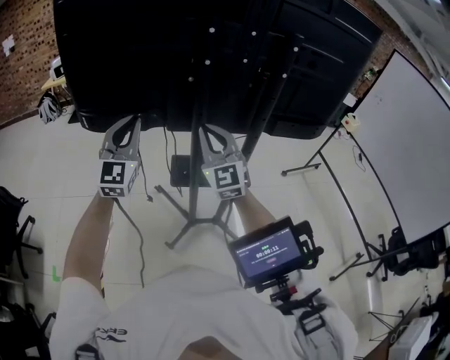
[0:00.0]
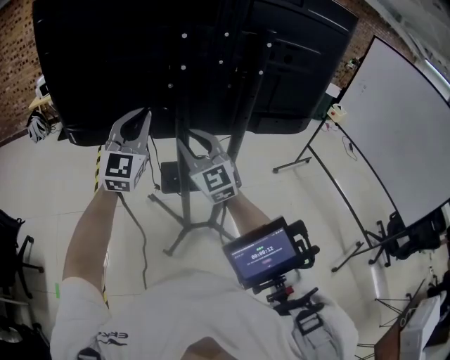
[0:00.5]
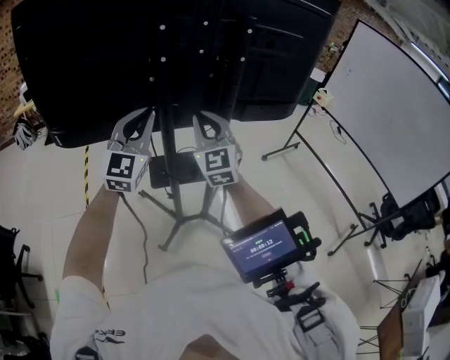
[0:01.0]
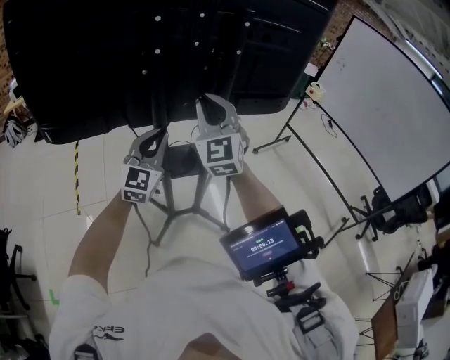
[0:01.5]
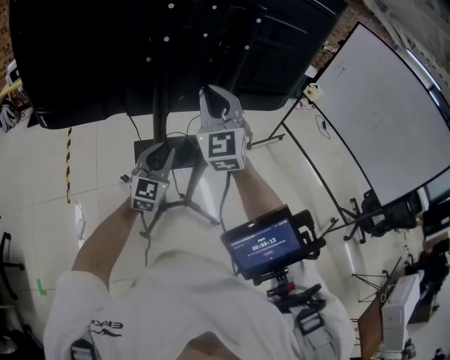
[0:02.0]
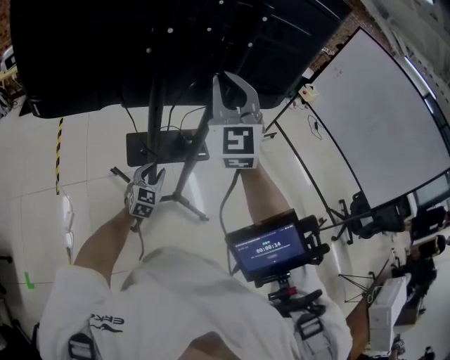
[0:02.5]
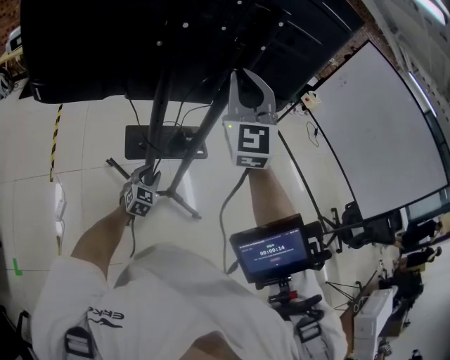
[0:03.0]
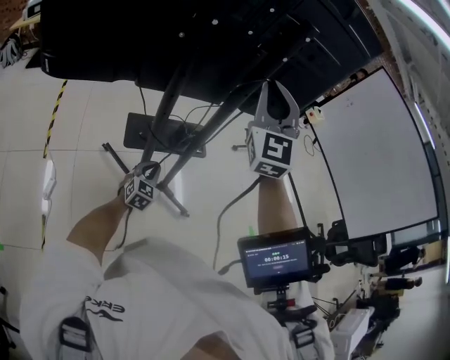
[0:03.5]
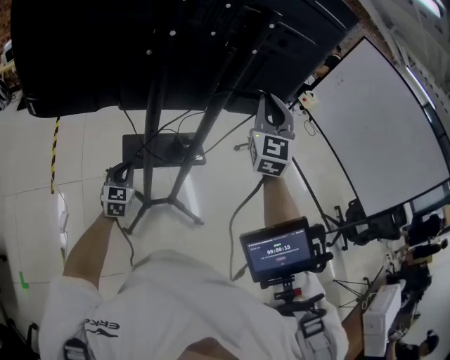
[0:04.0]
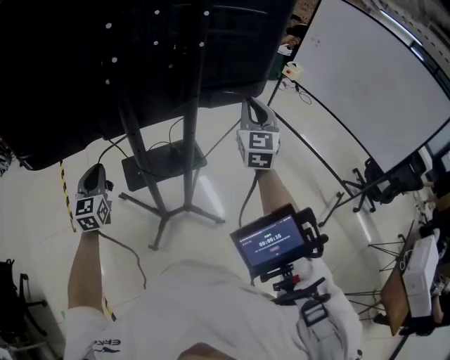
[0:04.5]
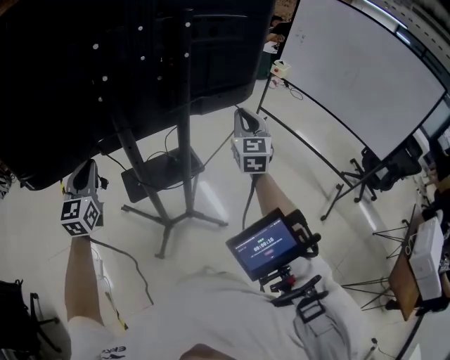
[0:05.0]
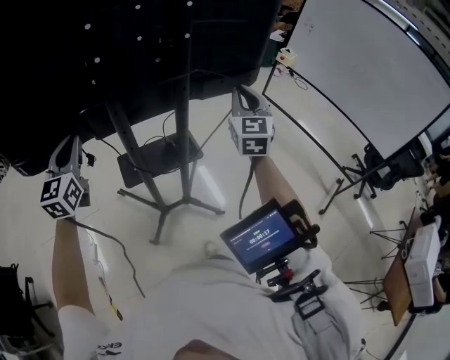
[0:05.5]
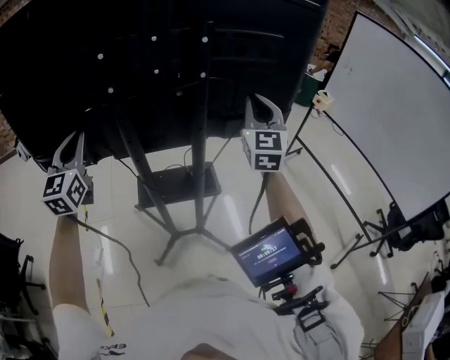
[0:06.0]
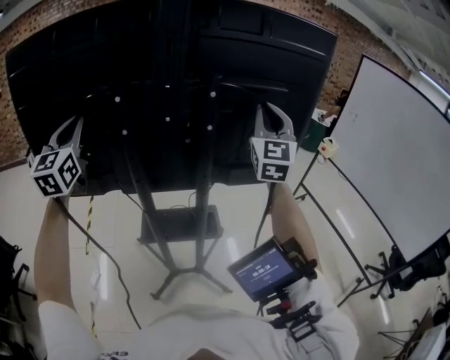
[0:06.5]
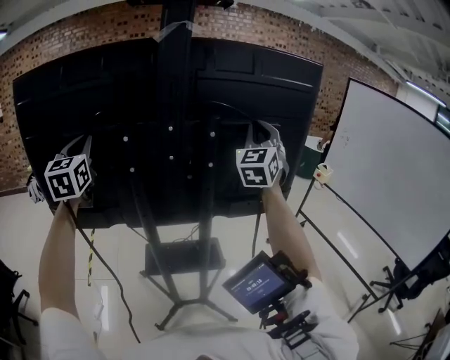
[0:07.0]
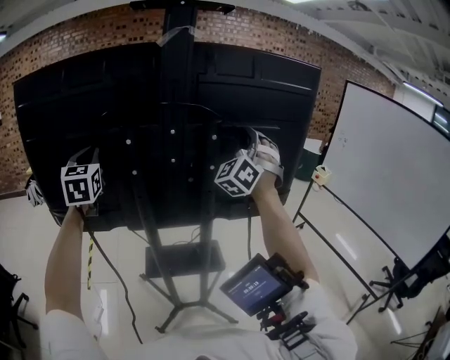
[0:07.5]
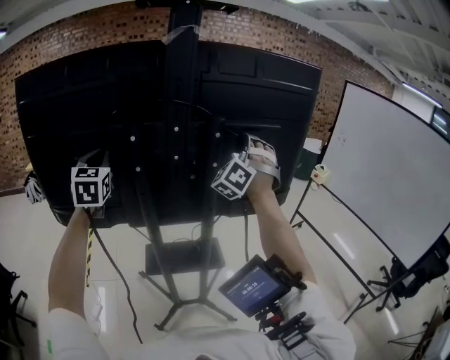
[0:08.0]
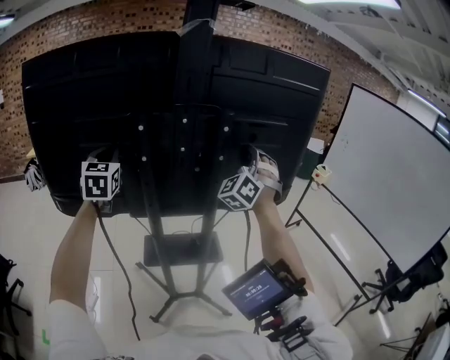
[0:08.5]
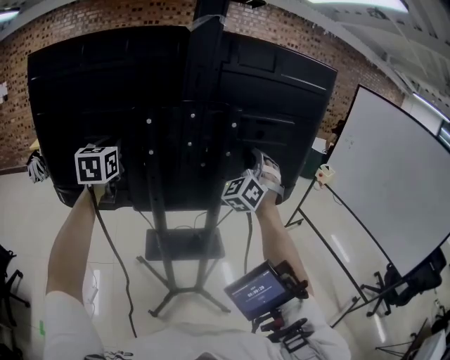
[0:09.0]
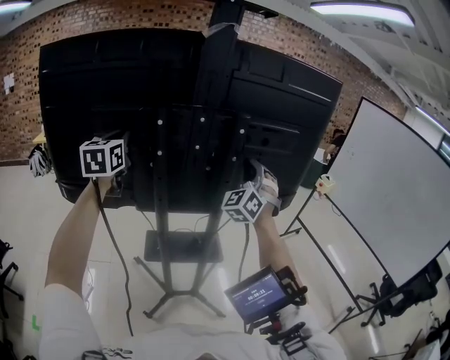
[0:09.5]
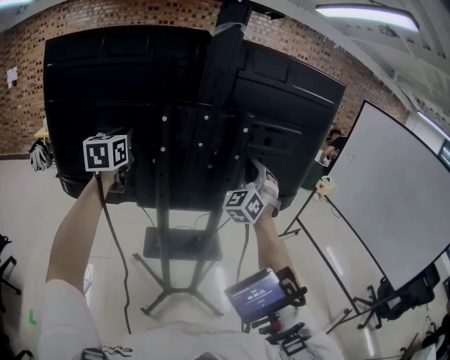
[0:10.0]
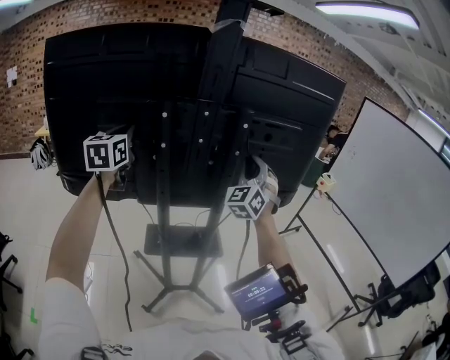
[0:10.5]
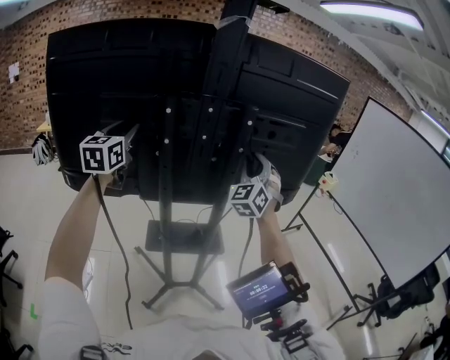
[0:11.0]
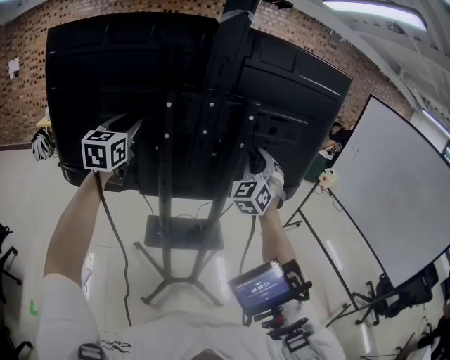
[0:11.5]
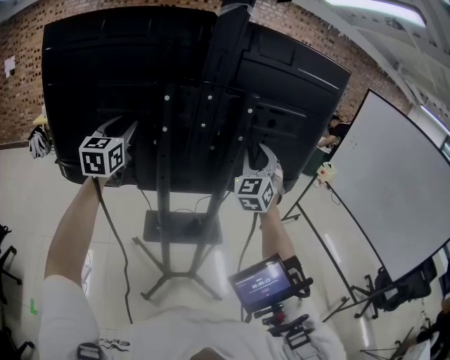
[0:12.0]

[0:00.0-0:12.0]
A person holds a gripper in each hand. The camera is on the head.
0:00.0 to 0:02.0: The left gripper travels to the right and downward by approximately 25 cm, and rotates about 30 degrees. The right gripper goes about 10 cm to the right and upward, and turns by approximately 20 degrees.
0:02.0 to 0:04.0: The right gripper heads to the right, covering some 15 cm; the left gripper moves downward and to the left, roughly 20 cm, and turns by some 30 degrees.
0:04.0 to 0:06.0: The right gripper moves forward and to the right, approximately 15 cm. Meanwhile the left gripper travels upward by roughly 35 cm, and rotates some 20 degrees.
0:06.0 to 0:08.0: The right gripper shifts some 15 cm upward, forward and to the left, and rotates around the line of its fingers by some 60 degrees, counterclockwise from behind. Meanwhile the left gripper moves upward and forward, roughly 15 cm.
0:08.0 to 0:10.0: The right gripper goes roughly 5 cm downward, and turns by approximately 20 degrees. Meanwhile the left gripper turns by about 20 degrees.
0:10.0 to 0:12.0: The right gripper opens; the left gripper opens.

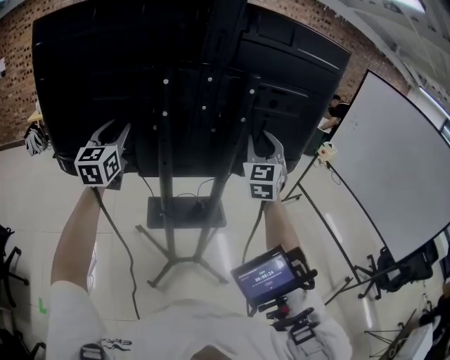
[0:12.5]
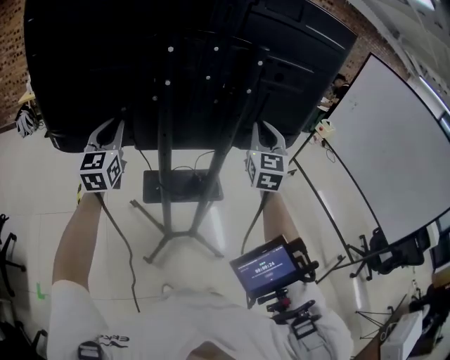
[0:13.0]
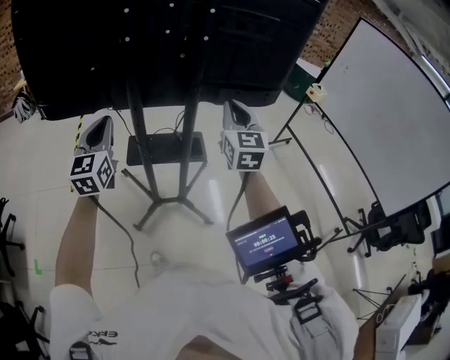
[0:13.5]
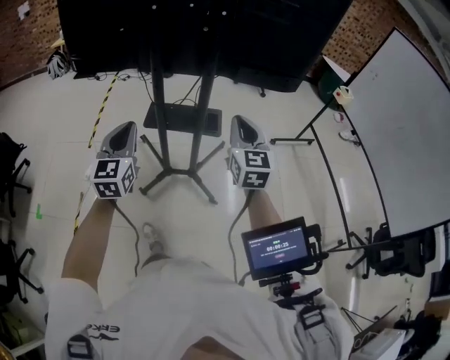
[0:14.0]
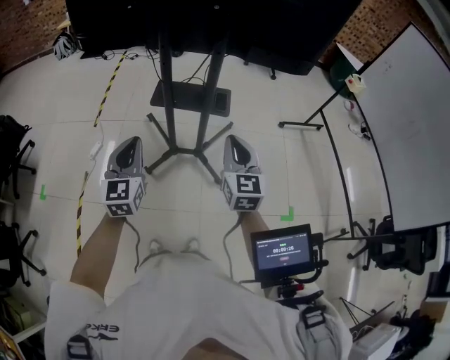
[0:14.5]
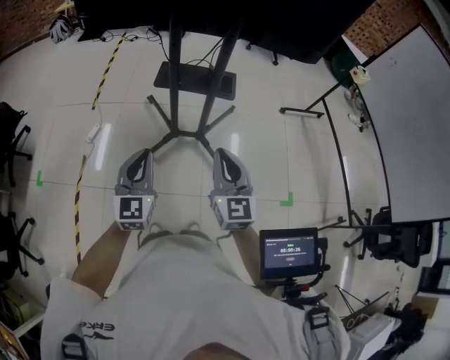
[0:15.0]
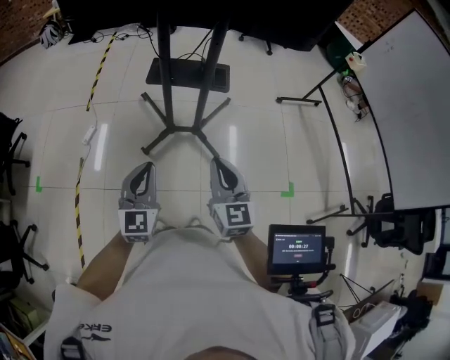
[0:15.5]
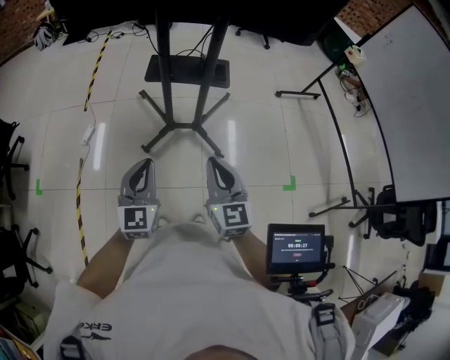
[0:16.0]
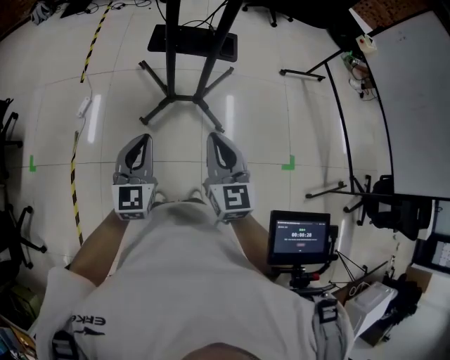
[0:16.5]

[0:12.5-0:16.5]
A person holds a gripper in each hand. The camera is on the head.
0:12.5 to 0:14.5: Both grippers travel together backward and downward, about 40 cm. The right gripper swivels about 40 degrees, and closes, while the left gripper turns by about 20 degrees, and closes.
0:14.5 to 0:16.5: The left gripper heads downward and backward, covering some 10 cm. The right gripper travels to the left, backward and downward by about 15 cm.

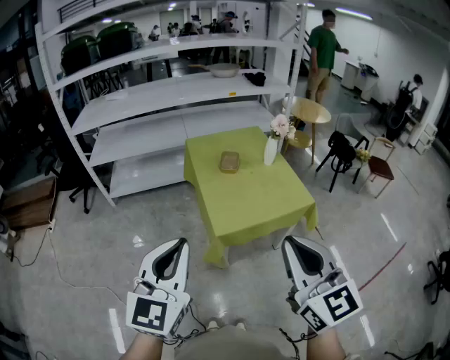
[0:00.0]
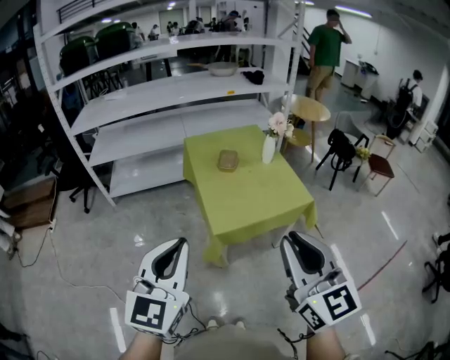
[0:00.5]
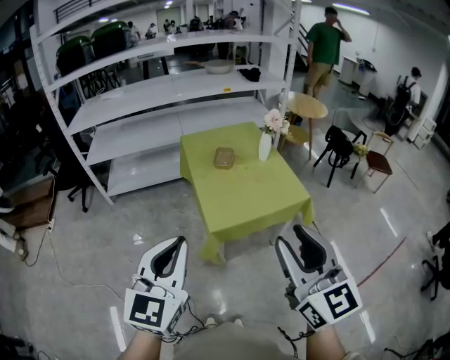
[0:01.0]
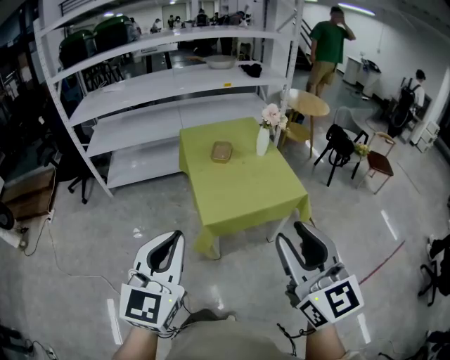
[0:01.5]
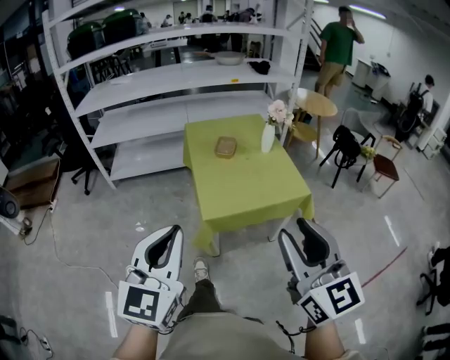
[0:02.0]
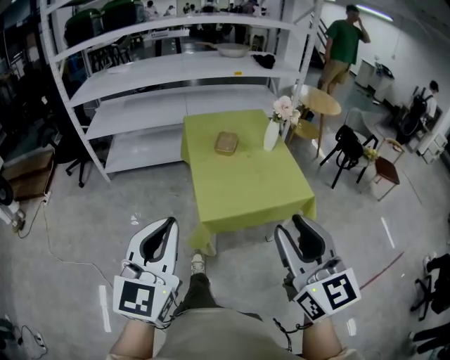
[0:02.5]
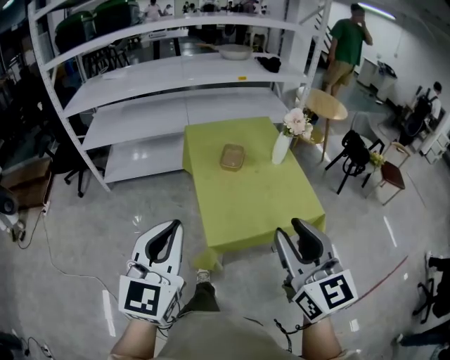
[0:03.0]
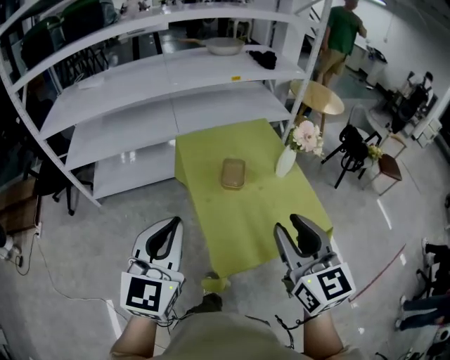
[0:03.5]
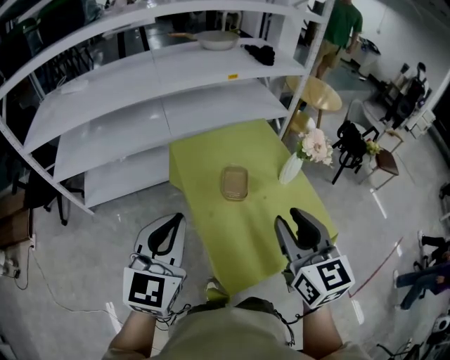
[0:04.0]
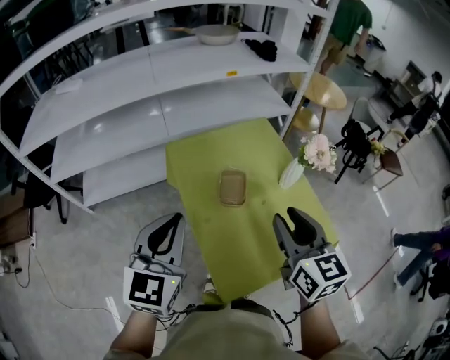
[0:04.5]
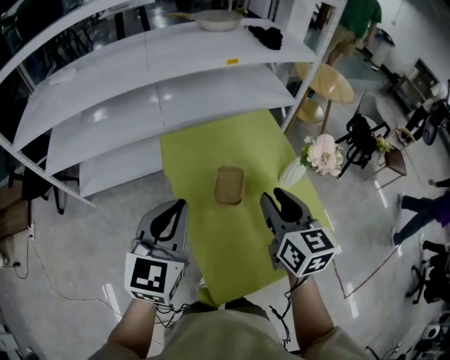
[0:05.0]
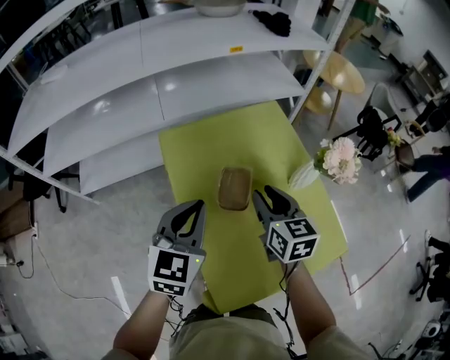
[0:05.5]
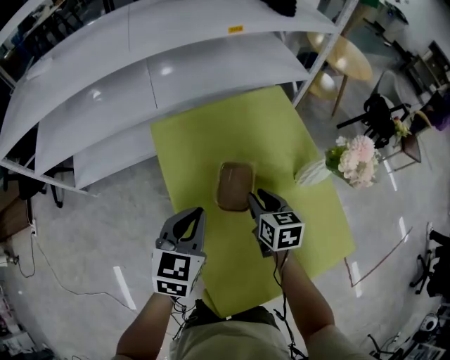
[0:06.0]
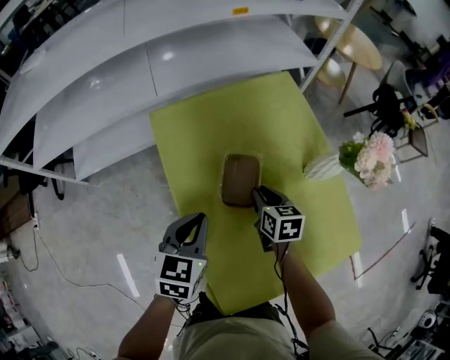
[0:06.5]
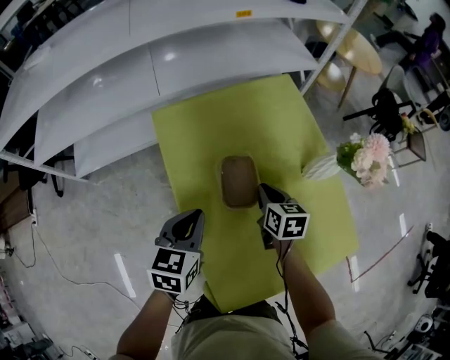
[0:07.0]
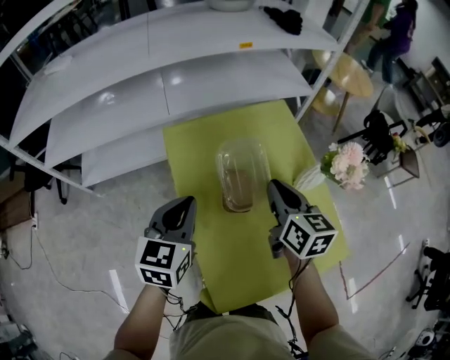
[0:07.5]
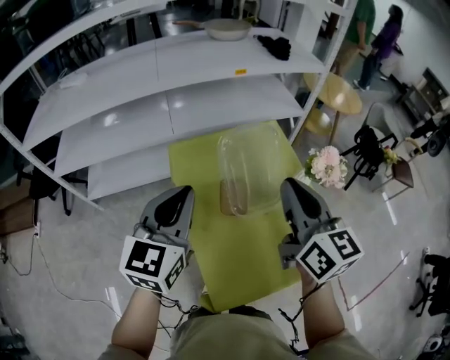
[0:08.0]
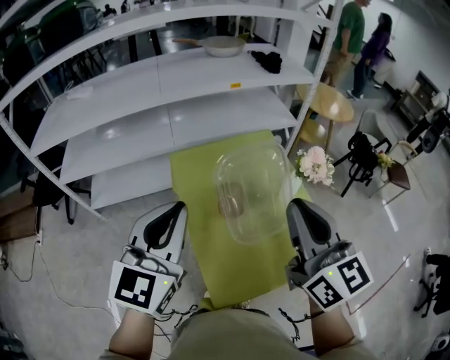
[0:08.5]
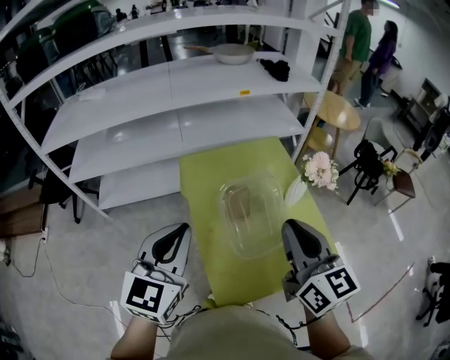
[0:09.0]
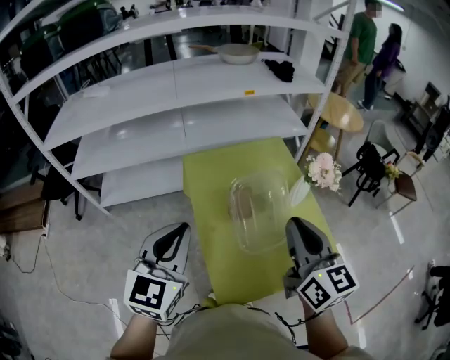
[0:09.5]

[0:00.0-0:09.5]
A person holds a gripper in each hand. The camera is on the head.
0:00.0 to 0:02.0: The two grippers go roughly 10 cm to the right. The right gripper opens.
0:02.0 to 0:04.0: The pair of grippers is taken forward, roughly 50 cm.
0:04.0 to 0:05.5: The right gripper shifts about 30 cm forward and downward. The left gripper shifts roughly 25 cm forward, downward and to the right.
0:05.5 to 0:07.5: The left gripper goes downward and returns, approximately 15 cm each way; the right gripper reaches roughly 20 cm downward, then returns, and closes.
0:07.5 to 0:09.5: The grippers both shift backward and upward by some 25 cm.

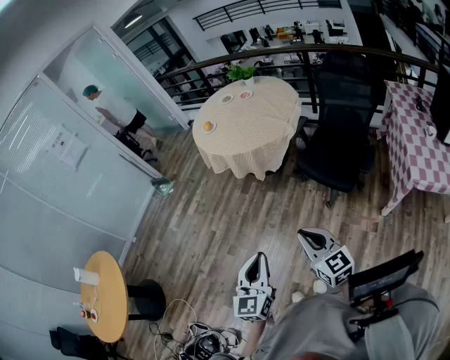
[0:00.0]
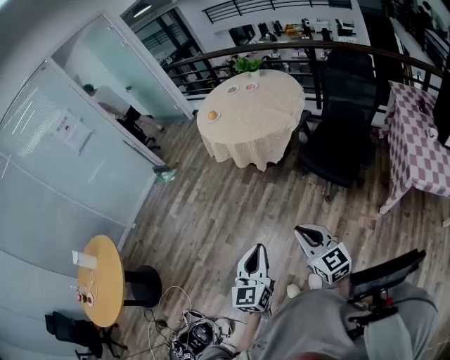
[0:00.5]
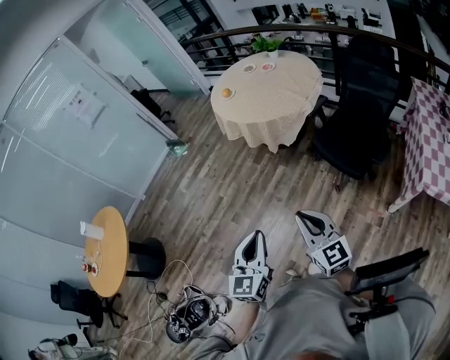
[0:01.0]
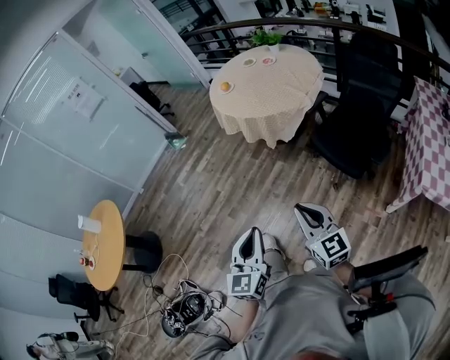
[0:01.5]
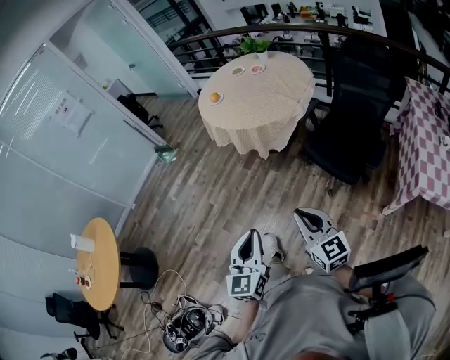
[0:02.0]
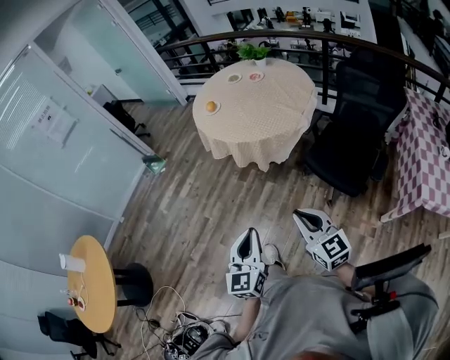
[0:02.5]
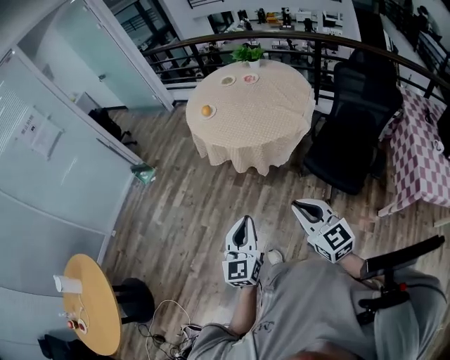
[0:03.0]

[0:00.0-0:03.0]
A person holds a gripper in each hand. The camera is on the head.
0:00.0 to 0:01.5: There are only small adjustments of the grippers.
0:01.5 to 0:03.0: The grippers both shift forward and to the left by some 30 cm.
